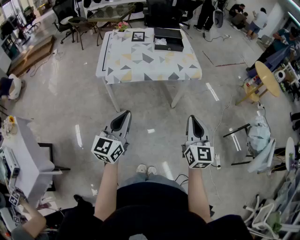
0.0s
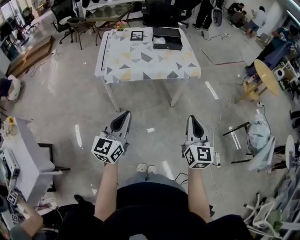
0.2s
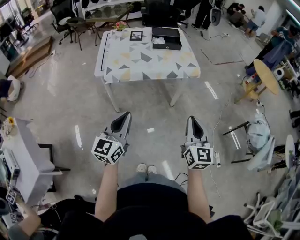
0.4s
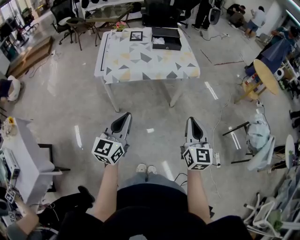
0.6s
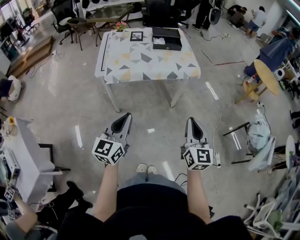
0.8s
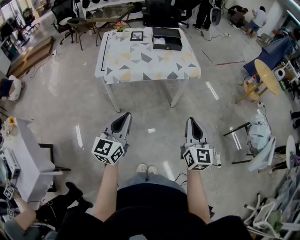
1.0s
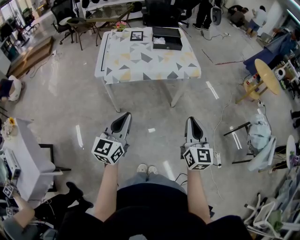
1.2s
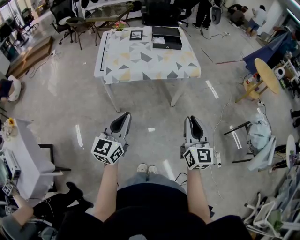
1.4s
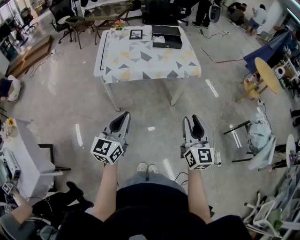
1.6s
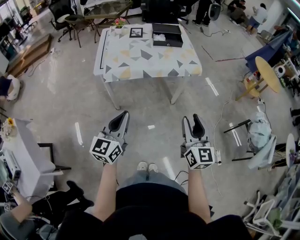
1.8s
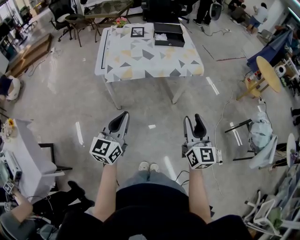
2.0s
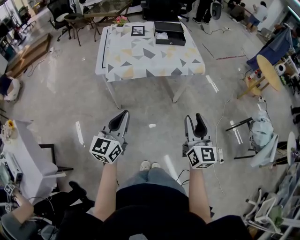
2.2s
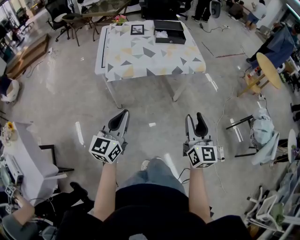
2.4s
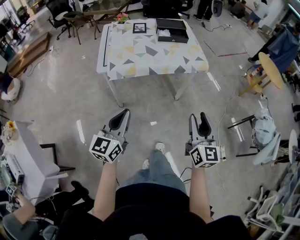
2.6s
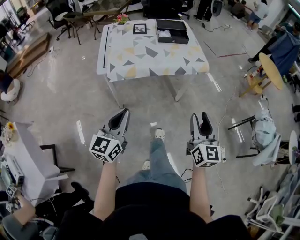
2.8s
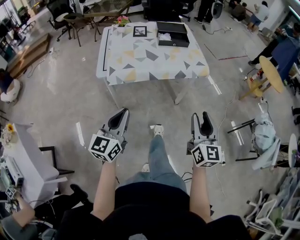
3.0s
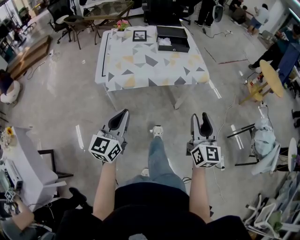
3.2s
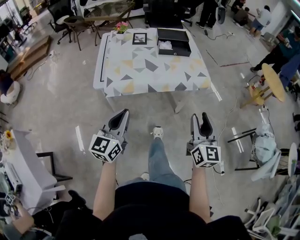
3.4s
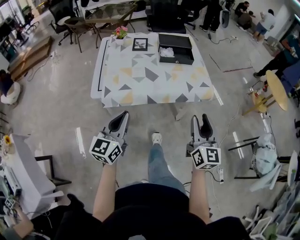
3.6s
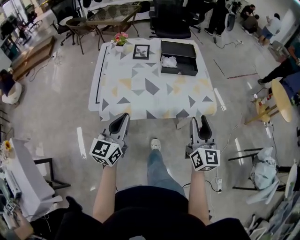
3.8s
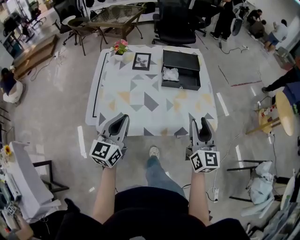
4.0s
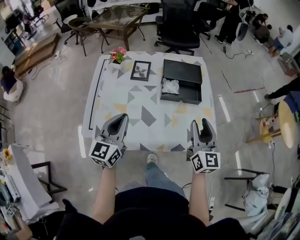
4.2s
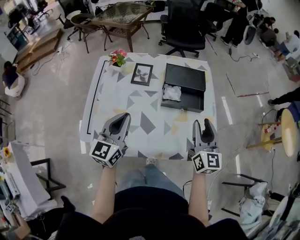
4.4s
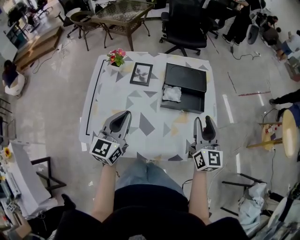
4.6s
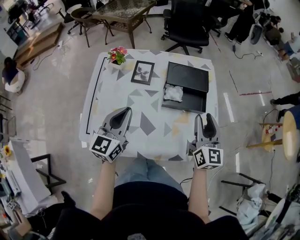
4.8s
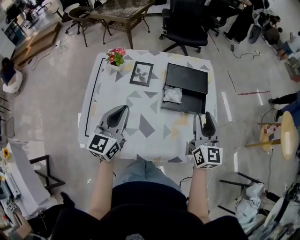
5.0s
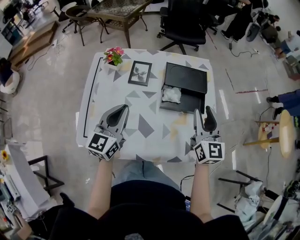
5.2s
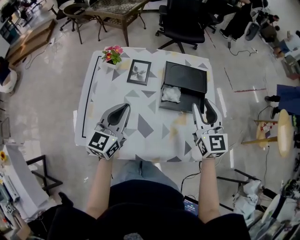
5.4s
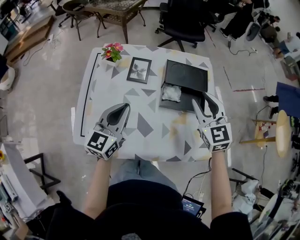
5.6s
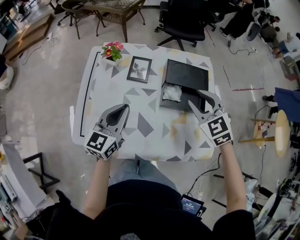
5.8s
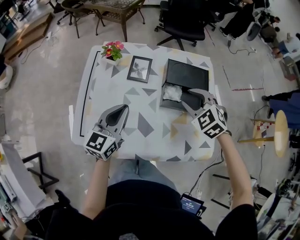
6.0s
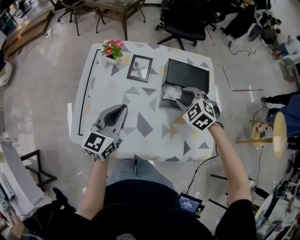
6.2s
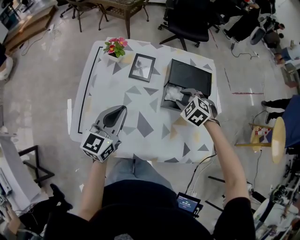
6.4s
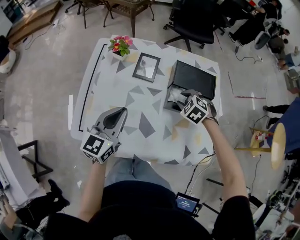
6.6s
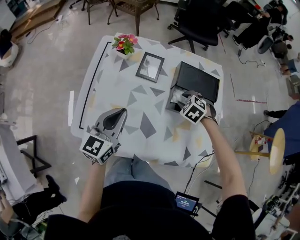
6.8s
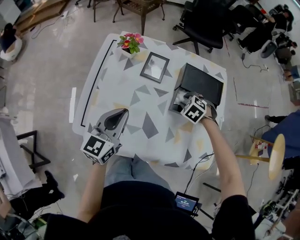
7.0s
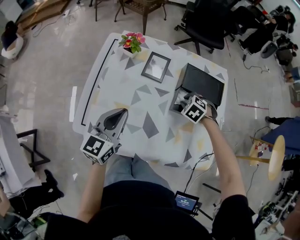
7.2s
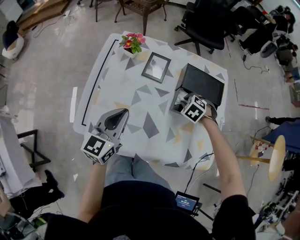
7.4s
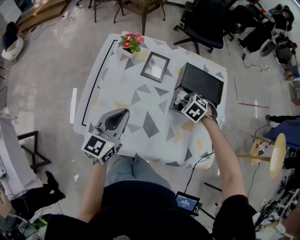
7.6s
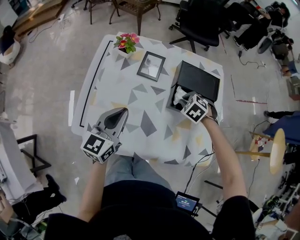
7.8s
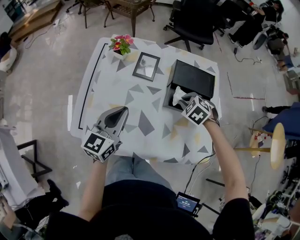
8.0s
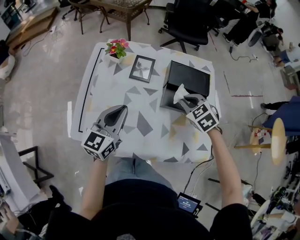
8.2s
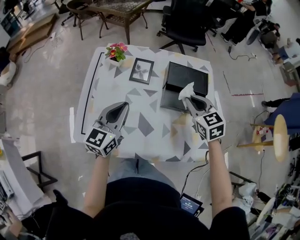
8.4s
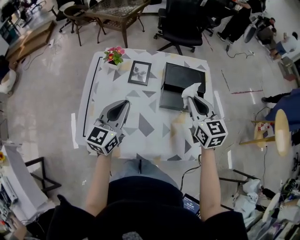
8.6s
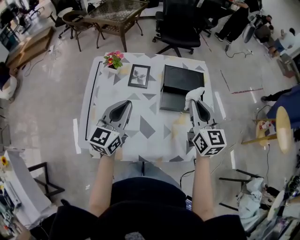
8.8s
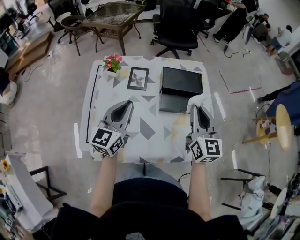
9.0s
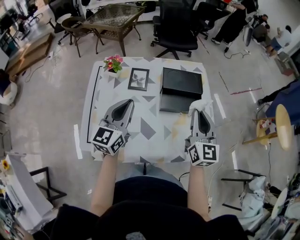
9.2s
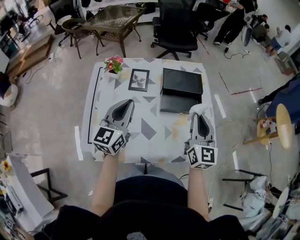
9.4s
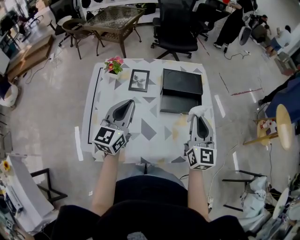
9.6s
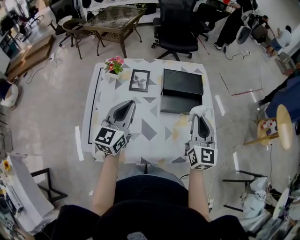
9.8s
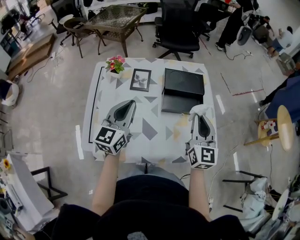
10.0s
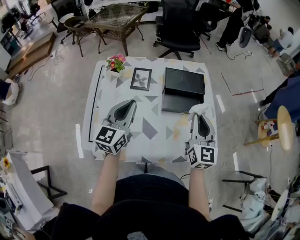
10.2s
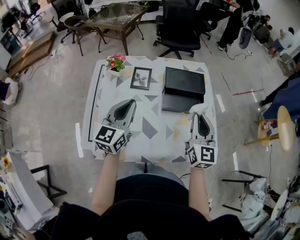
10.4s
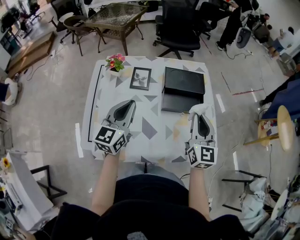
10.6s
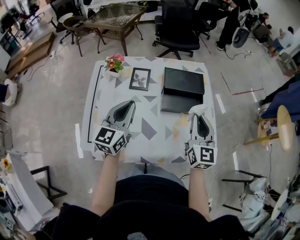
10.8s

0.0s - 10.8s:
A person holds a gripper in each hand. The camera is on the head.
0.0s - 1.6s: The right gripper opens up.
1.6s - 3.0s: The right gripper goes roughly 5 cm forward, while the left gripper is displaced to the left by approximately 5 cm.
3.0s - 4.6s: The two grippers travel together, forward, roughly 50 cm.
4.6s - 6.2s: The left gripper changes place by approximately 5 cm. Meanwhile the right gripper moves forward, to the left and downward, about 20 cm, and angles its fingers downward, by roughly 50 degrees.
6.2s - 7.8s: The right gripper moves downward, some 10 cm, and closes its fingers.
7.8s - 9.2s: The left gripper goes some 10 cm upward. Meanwhile the right gripper is displaced upward and backward by roughly 25 cm, and angles its fingers upward, by roughly 70 degrees.
9.2s - 10.8s: The grippers stay close to where they were, moving slightly.

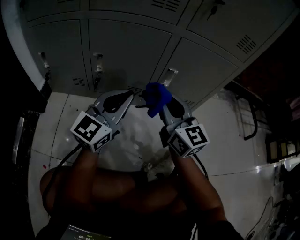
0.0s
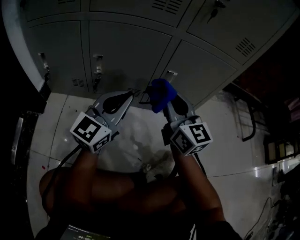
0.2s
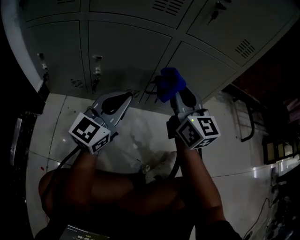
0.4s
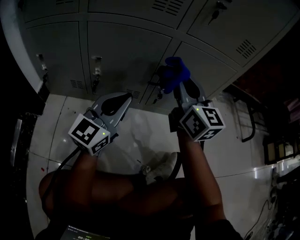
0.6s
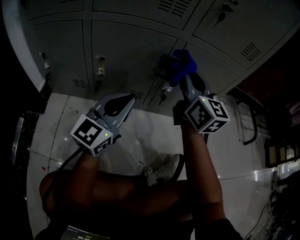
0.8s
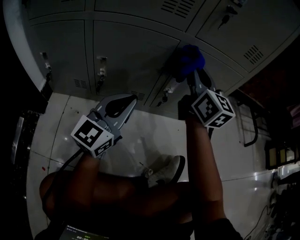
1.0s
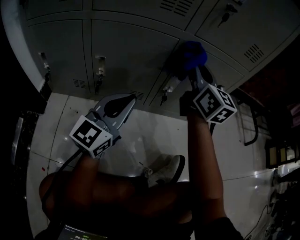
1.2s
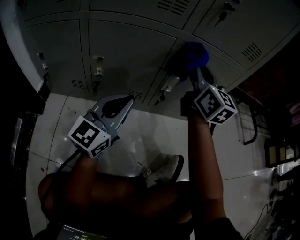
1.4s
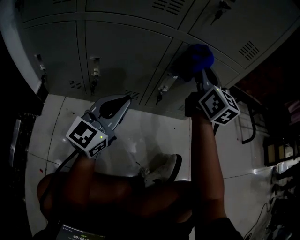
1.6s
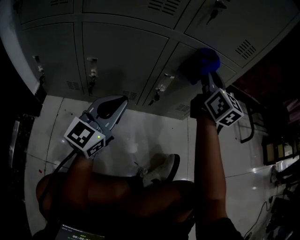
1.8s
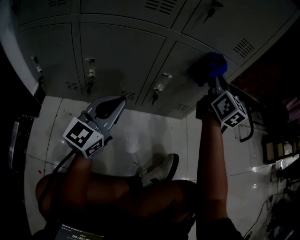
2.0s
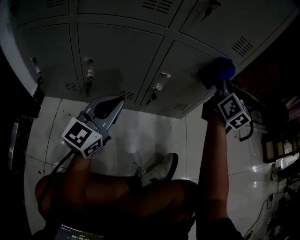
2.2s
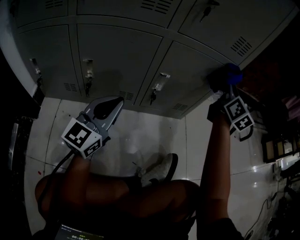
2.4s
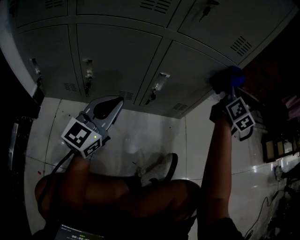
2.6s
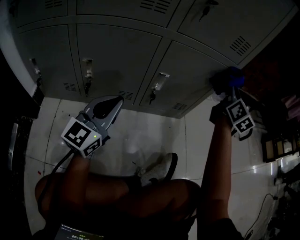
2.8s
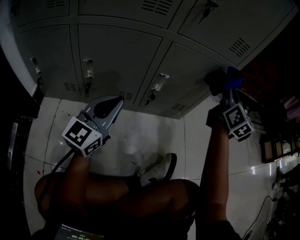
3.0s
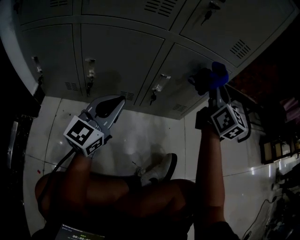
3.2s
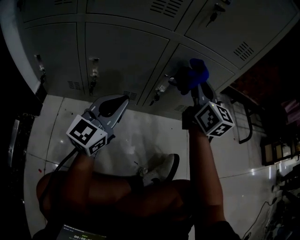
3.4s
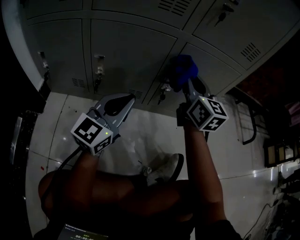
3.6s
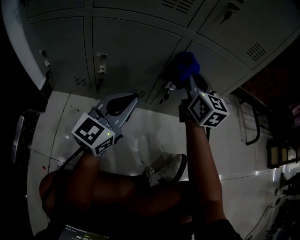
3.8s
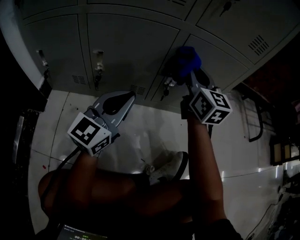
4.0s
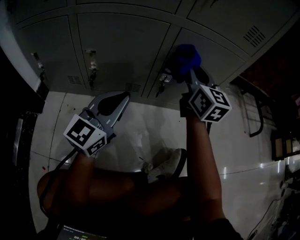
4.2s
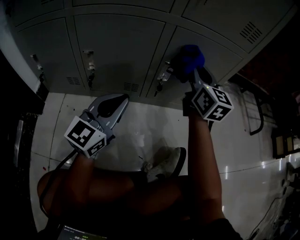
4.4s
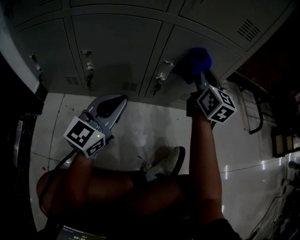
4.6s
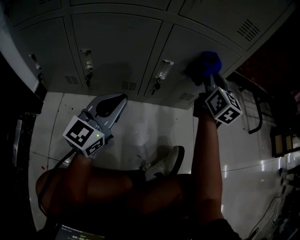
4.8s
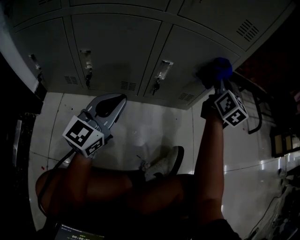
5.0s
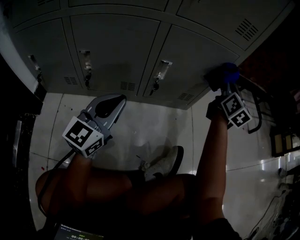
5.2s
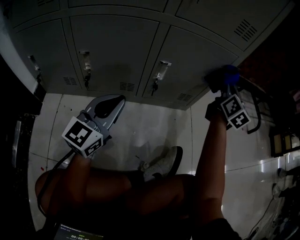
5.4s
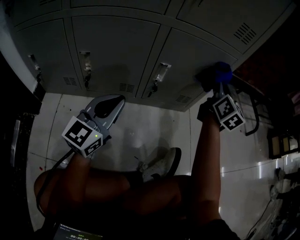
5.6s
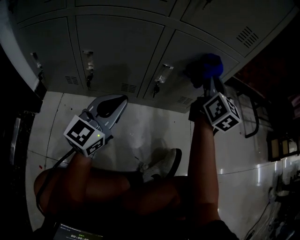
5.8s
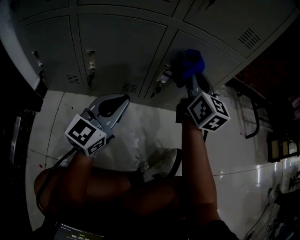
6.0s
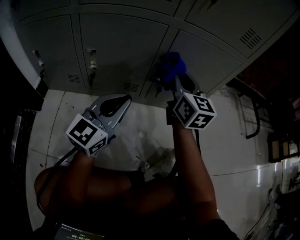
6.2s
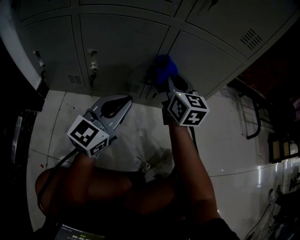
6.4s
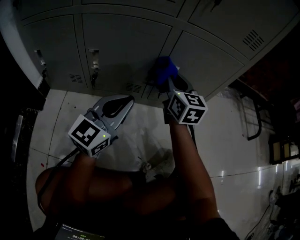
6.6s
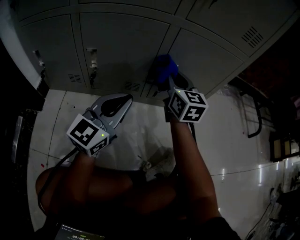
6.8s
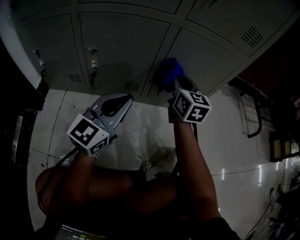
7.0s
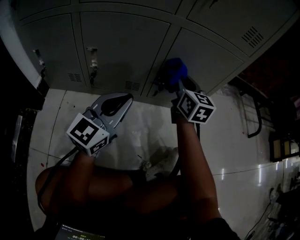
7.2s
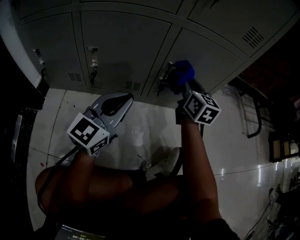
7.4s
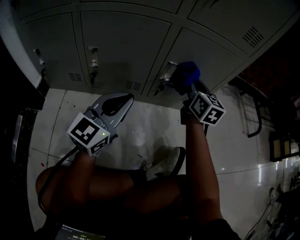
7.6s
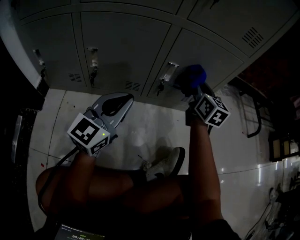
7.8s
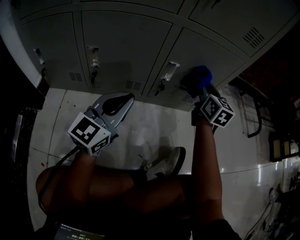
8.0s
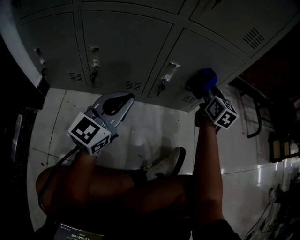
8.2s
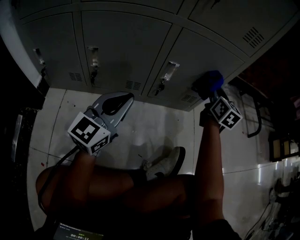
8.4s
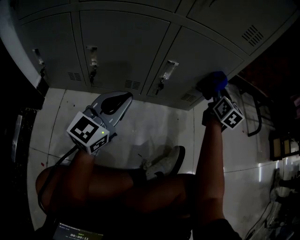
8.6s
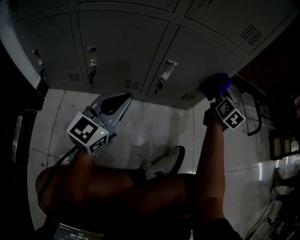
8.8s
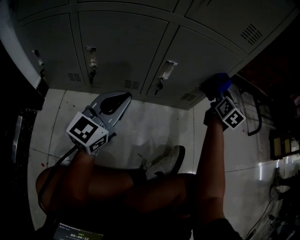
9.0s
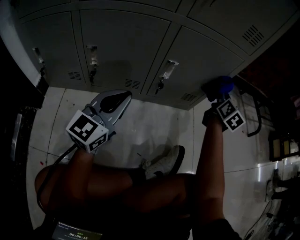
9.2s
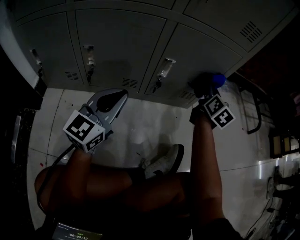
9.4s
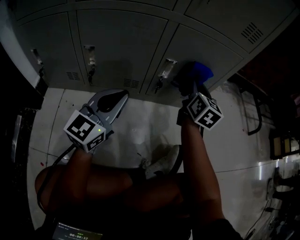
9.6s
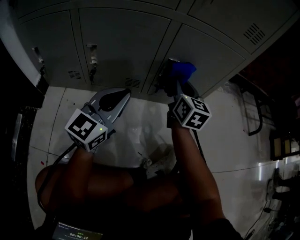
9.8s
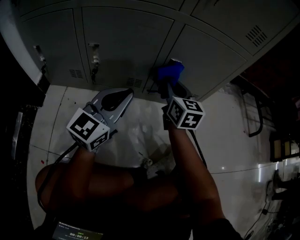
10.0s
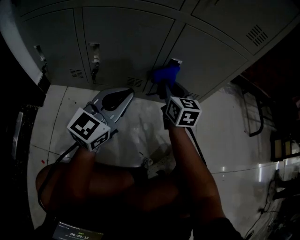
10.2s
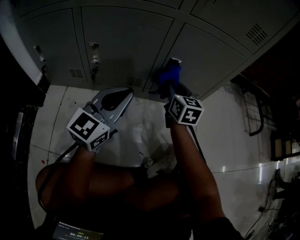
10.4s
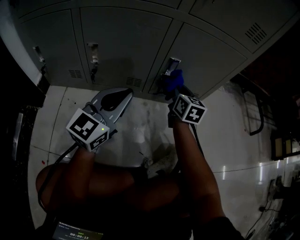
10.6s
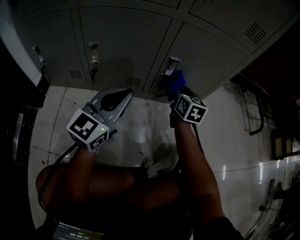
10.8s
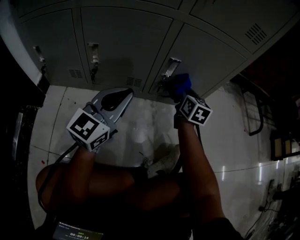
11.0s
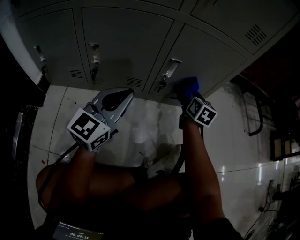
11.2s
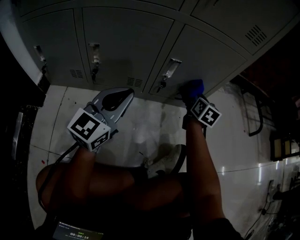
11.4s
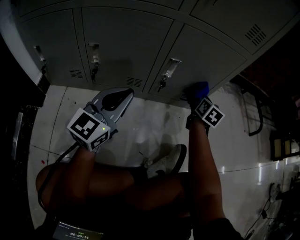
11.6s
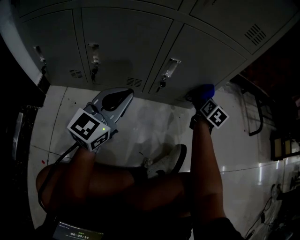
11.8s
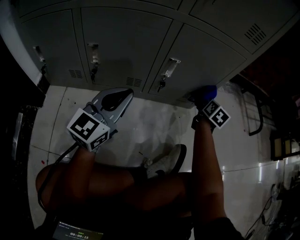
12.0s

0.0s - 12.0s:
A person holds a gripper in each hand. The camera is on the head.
0.0s - 1.6s: The right gripper is displaced forward, upward and to the right by about 20 cm.
1.6s - 3.0s: The right gripper moves to the right, about 15 cm.
3.0s - 4.4s: The right gripper is displaced to the left and downward by approximately 15 cm.
4.4s - 6.0s: The right gripper goes to the right and returns, roughly 20 cm each way.
6.0s - 7.6s: The right gripper travels downward by some 10 cm.
7.6s - 9.0s: The right gripper shifts approximately 15 cm to the right.
9.0s - 10.4s: The right gripper moves to the left, approximately 20 cm, and turns by about 20 degrees.
10.4s - 12.0s: The right gripper shifts roughly 20 cm to the right, and turns by some 30 degrees.

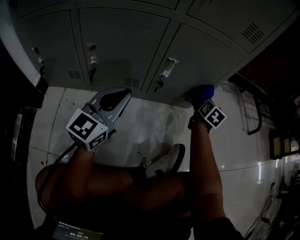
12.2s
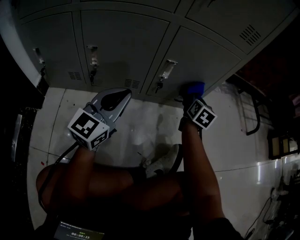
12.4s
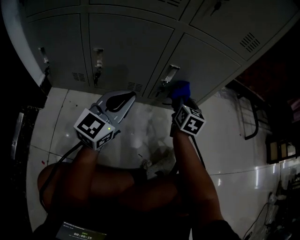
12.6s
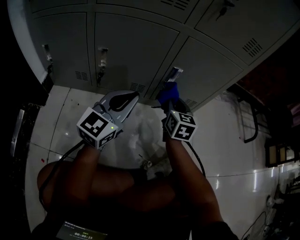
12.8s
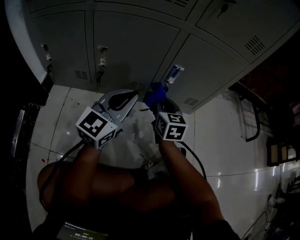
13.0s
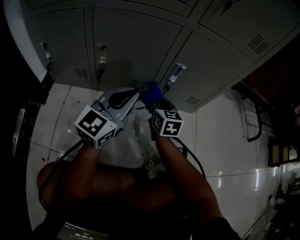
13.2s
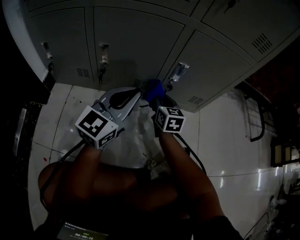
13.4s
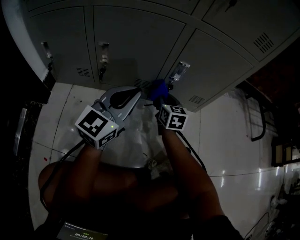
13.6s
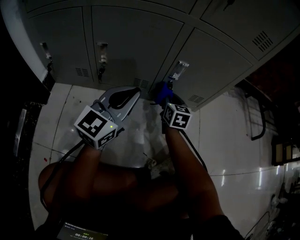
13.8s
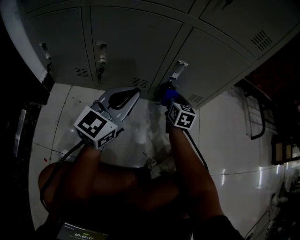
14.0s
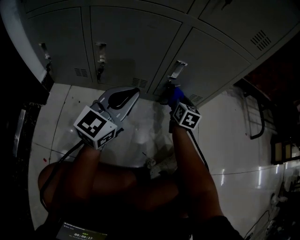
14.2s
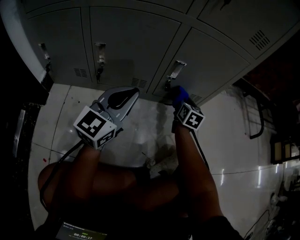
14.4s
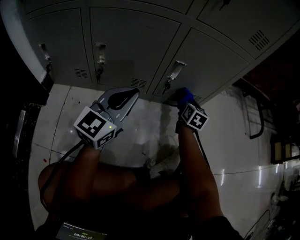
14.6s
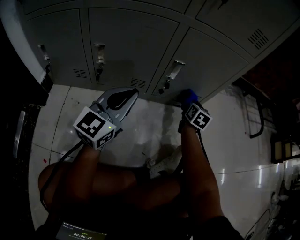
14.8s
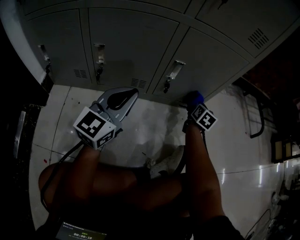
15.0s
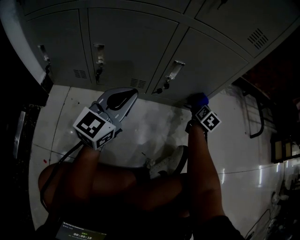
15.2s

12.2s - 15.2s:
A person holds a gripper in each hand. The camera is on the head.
12.2s - 13.8s: The right gripper shifts about 20 cm to the left, and rotates about 30 degrees.
13.8s - 15.2s: The right gripper travels to the right by approximately 20 cm, and rotates about 30 degrees.
